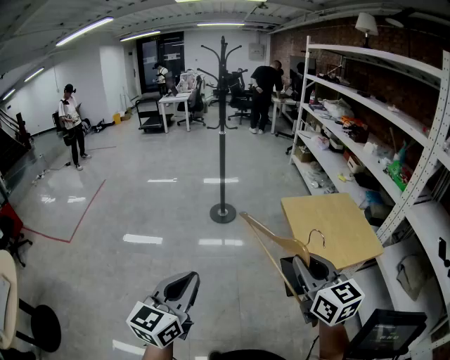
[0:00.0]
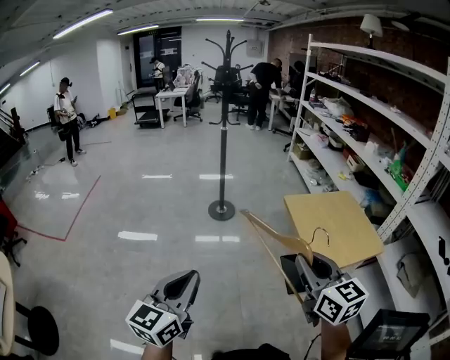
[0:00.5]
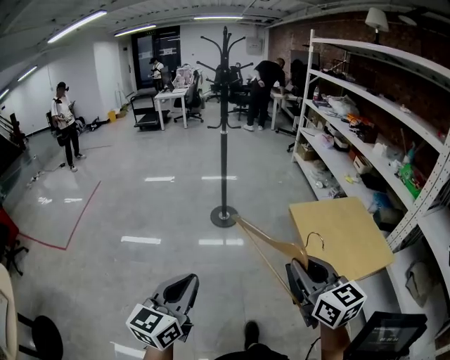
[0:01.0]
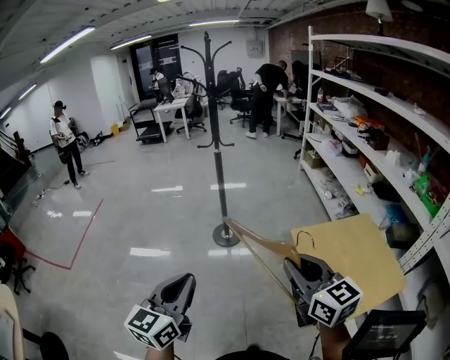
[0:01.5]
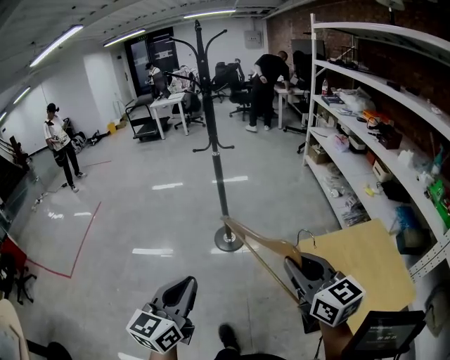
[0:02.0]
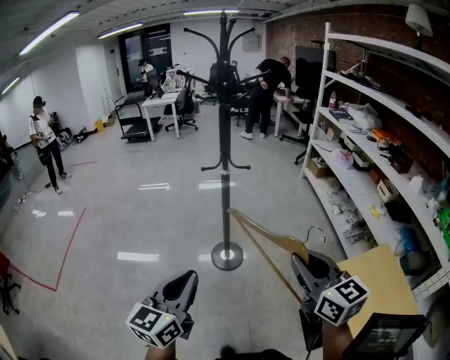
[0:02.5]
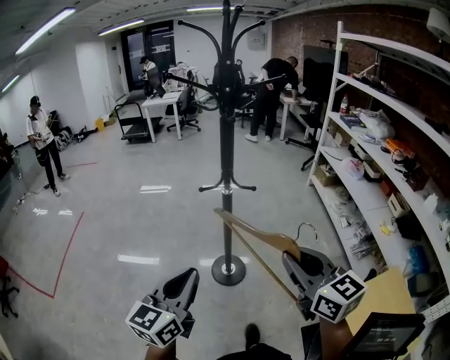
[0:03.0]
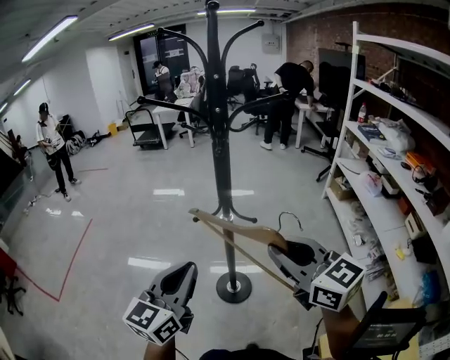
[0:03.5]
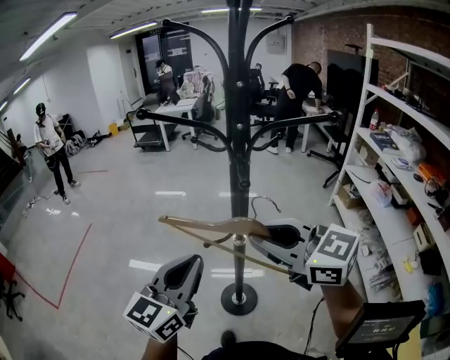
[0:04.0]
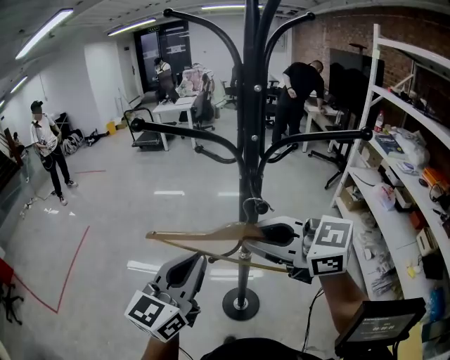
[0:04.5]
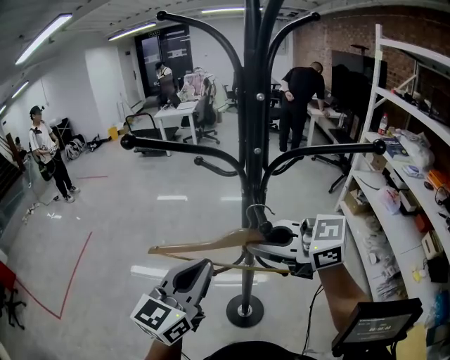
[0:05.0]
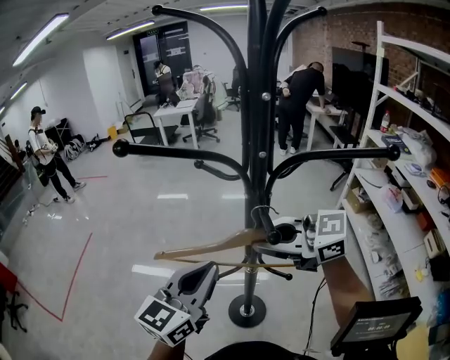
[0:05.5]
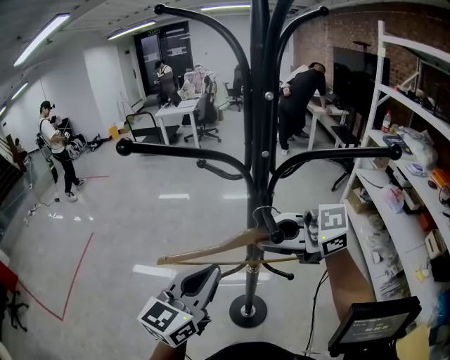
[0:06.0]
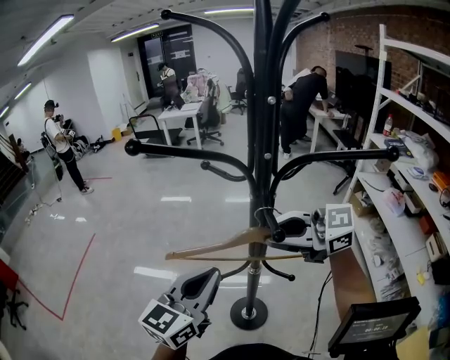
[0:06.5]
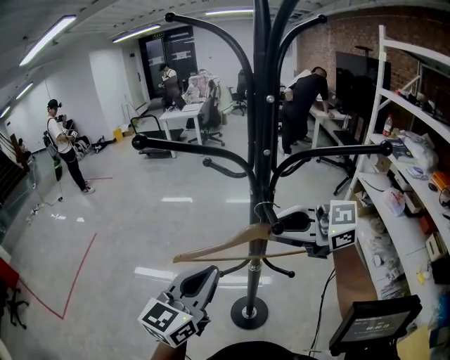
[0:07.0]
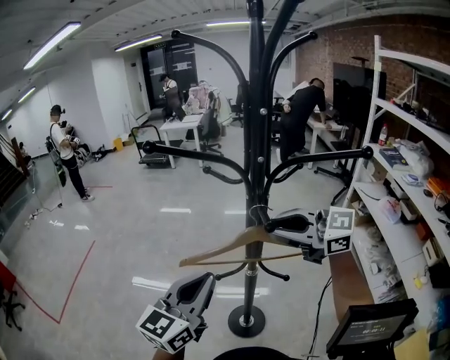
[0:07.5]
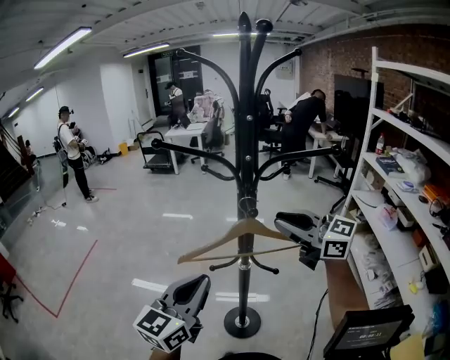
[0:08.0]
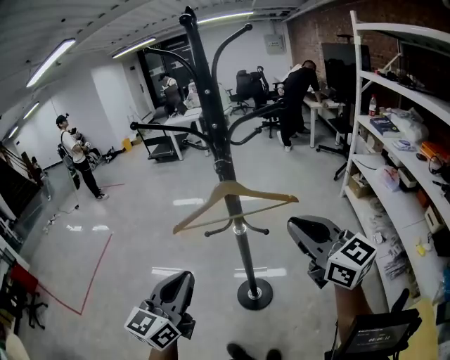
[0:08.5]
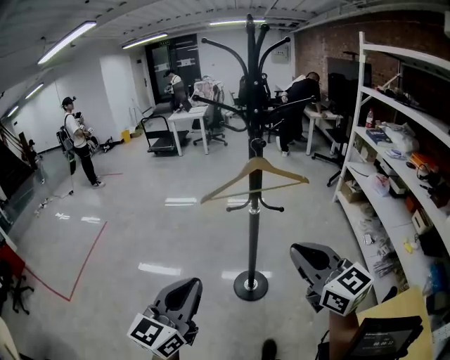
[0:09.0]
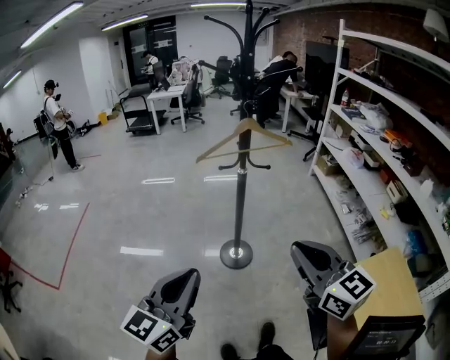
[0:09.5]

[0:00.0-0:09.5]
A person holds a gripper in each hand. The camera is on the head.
0:00.0 to 0:02.0: The two grippers go some 35 cm forward.
0:02.0 to 0:04.0: The two grippers travel together, forward, approximately 50 cm. The right gripper swivels some 40 degrees.
0:04.0 to 0:05.5: The right gripper heads forward and downward, covering about 10 cm, and changes its angle by some 20 degrees; the left gripper shifts approximately 10 cm forward.
0:05.5 to 0:07.5: The right gripper ends up some 5 cm from where it was.
0:07.5 to 0:09.5: The right gripper moves about 50 cm, and turns by roughly 50 degrees, while the left gripper shifts by roughly 40 cm.

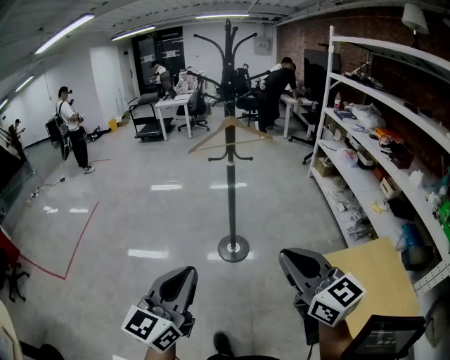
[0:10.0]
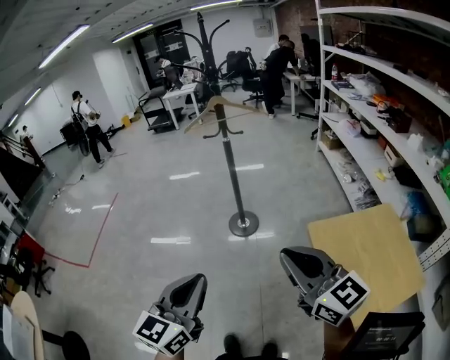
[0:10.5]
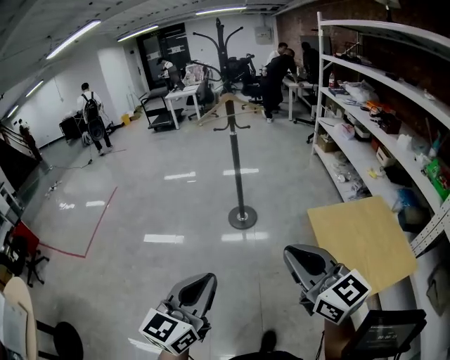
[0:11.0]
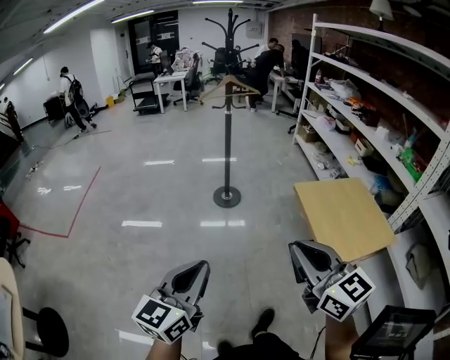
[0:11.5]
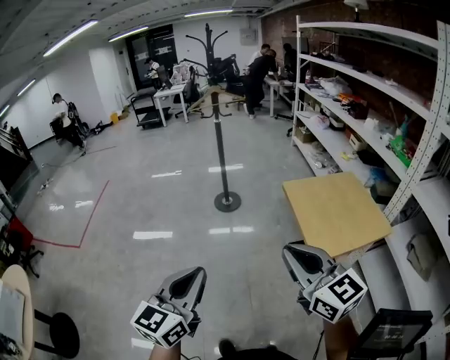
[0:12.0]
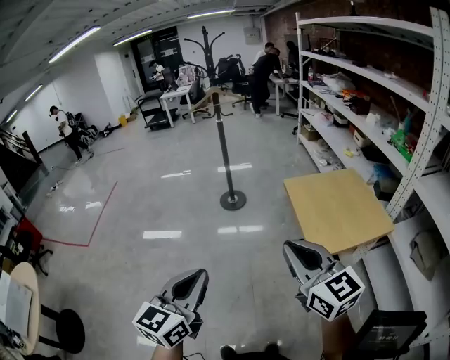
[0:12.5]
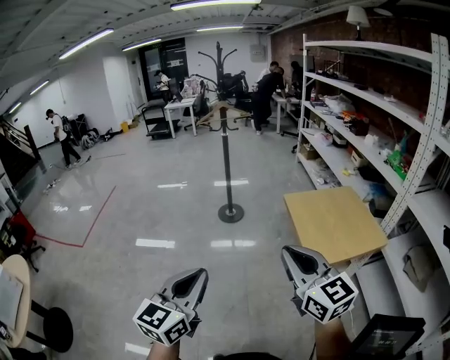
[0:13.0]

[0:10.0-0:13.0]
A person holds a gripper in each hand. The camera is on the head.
0:10.0 to 0:11.5: Both grippers move backward, approximately 35 cm.
0:11.5 to 0:13.0: Both grippers move backward and to the right, some 15 cm.

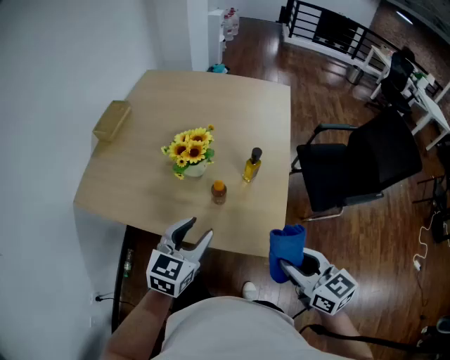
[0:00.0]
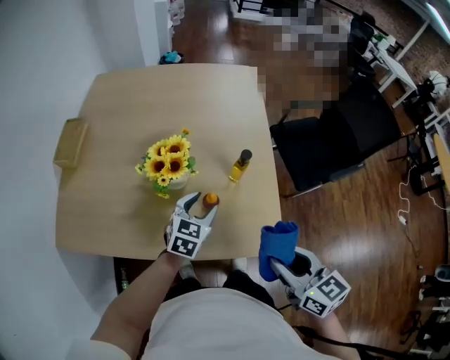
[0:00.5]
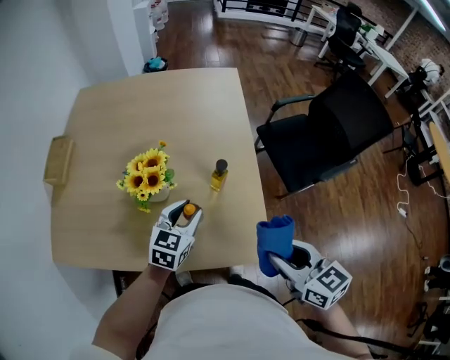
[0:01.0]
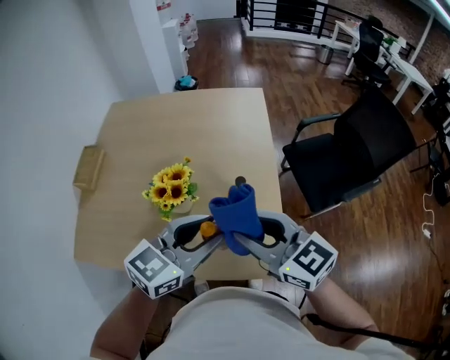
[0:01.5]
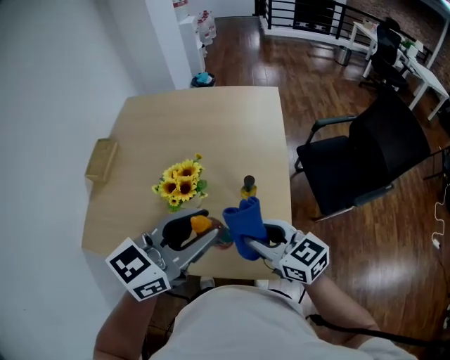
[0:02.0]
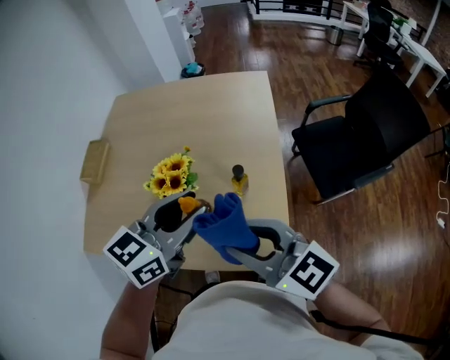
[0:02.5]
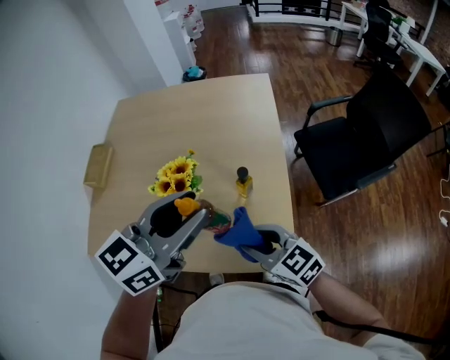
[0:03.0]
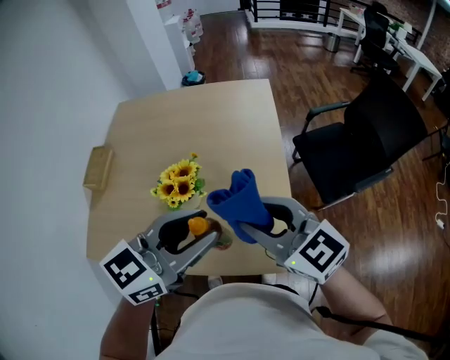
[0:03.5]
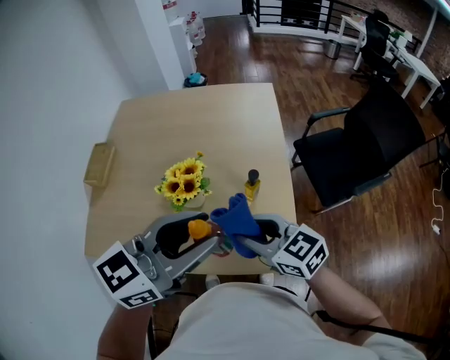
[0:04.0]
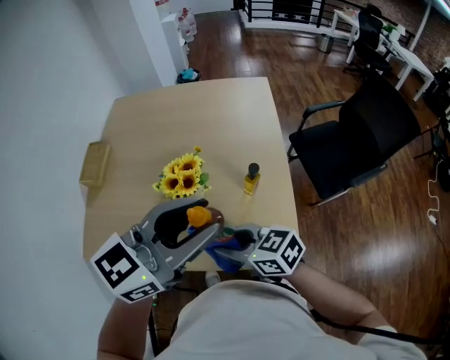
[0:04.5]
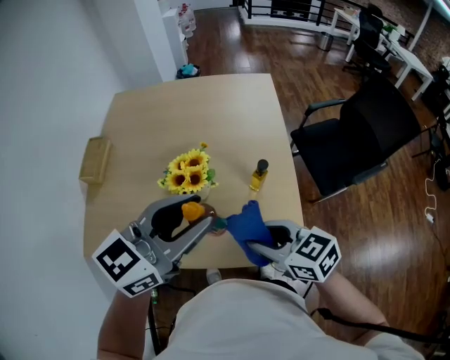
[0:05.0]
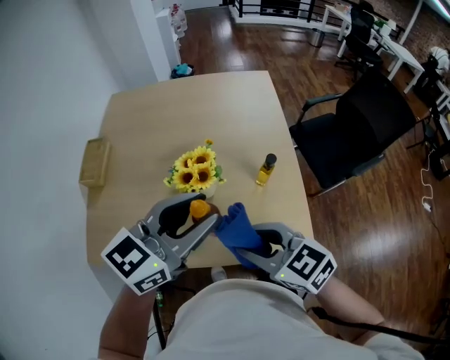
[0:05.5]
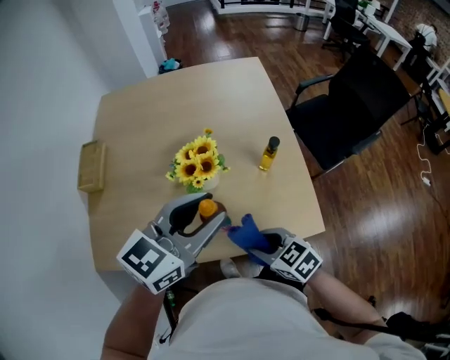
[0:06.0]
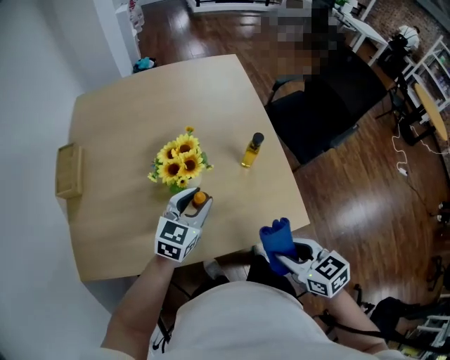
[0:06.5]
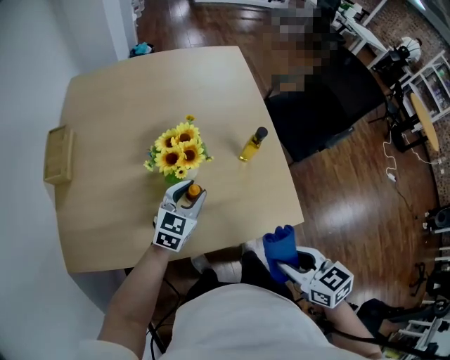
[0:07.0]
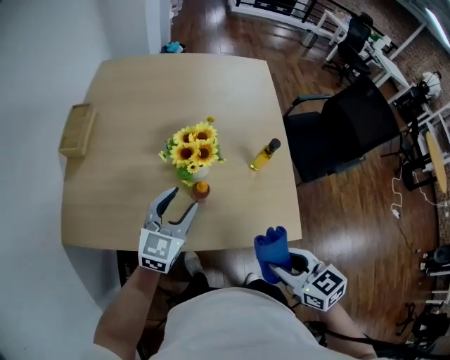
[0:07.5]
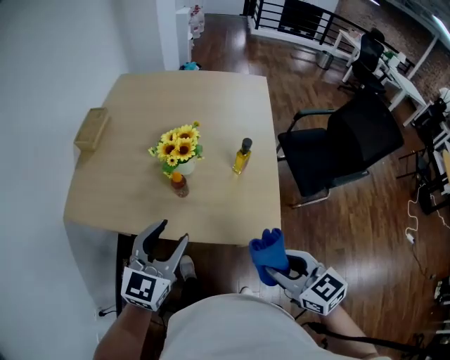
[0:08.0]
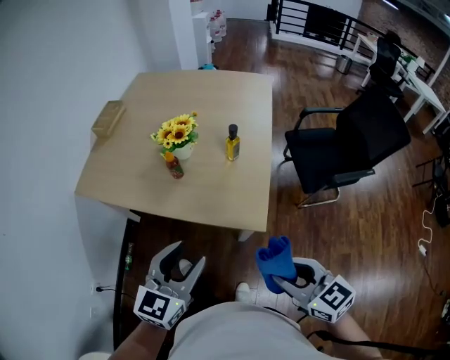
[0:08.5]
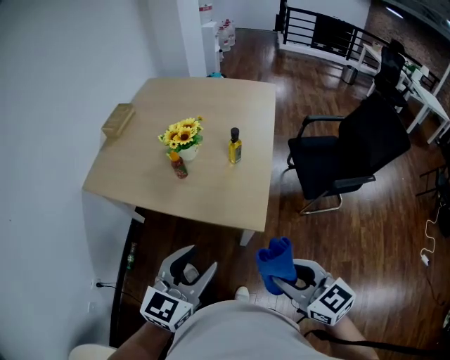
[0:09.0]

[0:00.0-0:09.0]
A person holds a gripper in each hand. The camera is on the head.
0:00.0 to 0:02.0: The left gripper travels upward and forward by some 20 cm, and swivels some 30 degrees; the right gripper goes some 20 cm forward and to the left.
0:02.0 to 0:04.5: The left gripper moves roughly 5 cm. Meanwhile the right gripper swings up and down, approximately 15 cm each way, with 3 reversals.
0:04.5 to 0:07.0: The left gripper travels downward by some 30 cm, and rotates some 20 degrees. The right gripper goes up and down, about 15 cm each way, reversing 2 times, and changes its angle by roughly 40 degrees.
0:07.0 to 0:09.0: The left gripper moves approximately 50 cm, and rotates about 30 degrees. Meanwhile the right gripper shifts by about 30 cm, and swivels approximately 40 degrees.

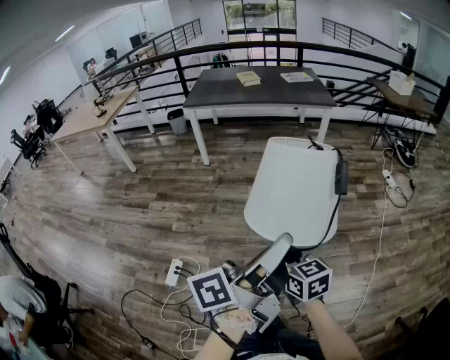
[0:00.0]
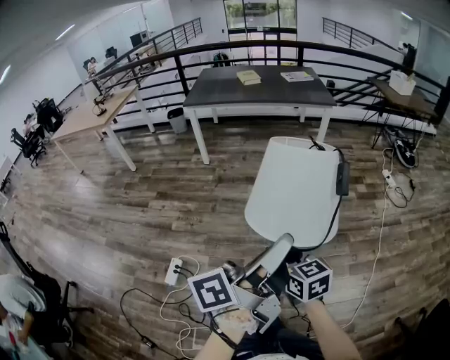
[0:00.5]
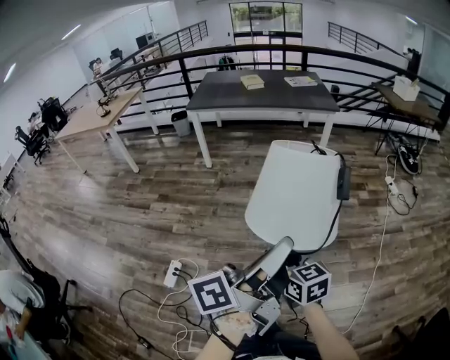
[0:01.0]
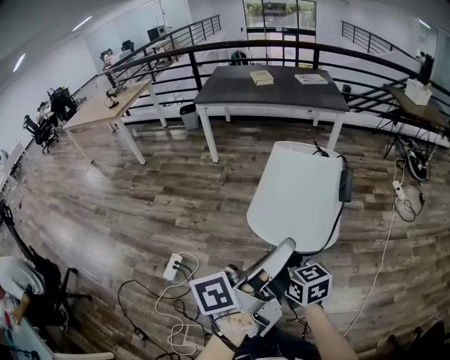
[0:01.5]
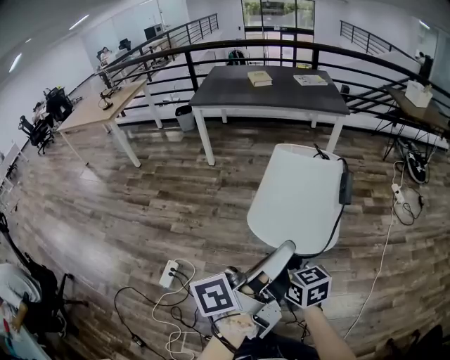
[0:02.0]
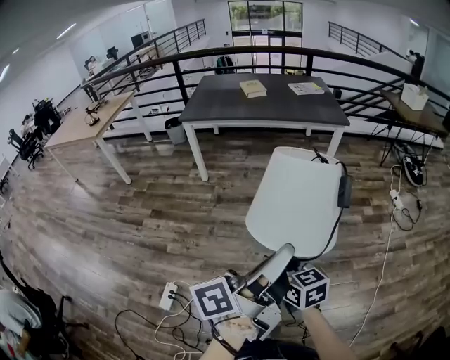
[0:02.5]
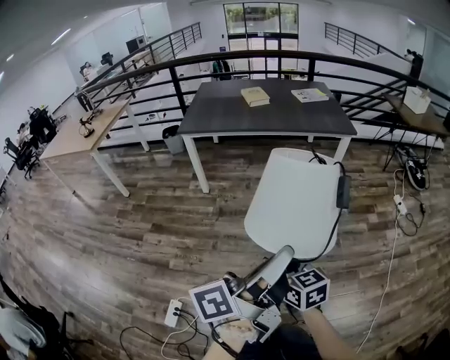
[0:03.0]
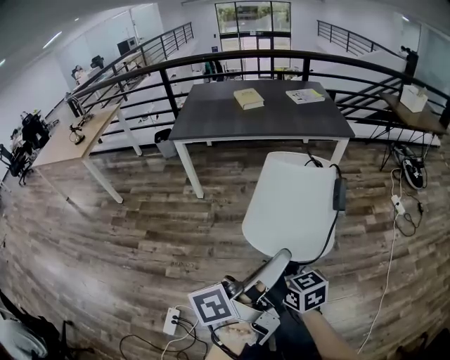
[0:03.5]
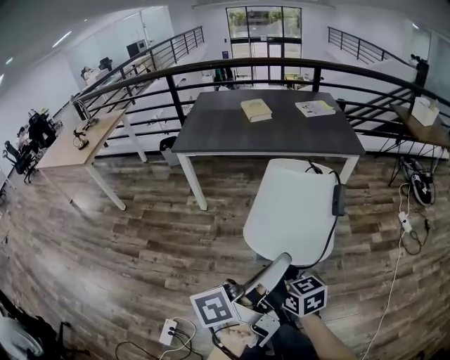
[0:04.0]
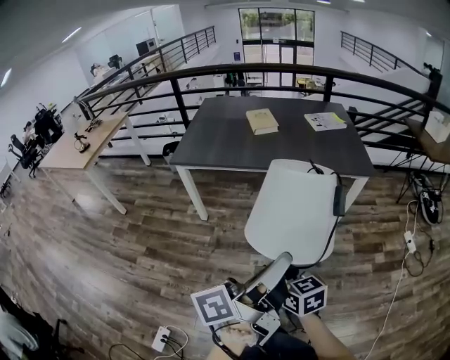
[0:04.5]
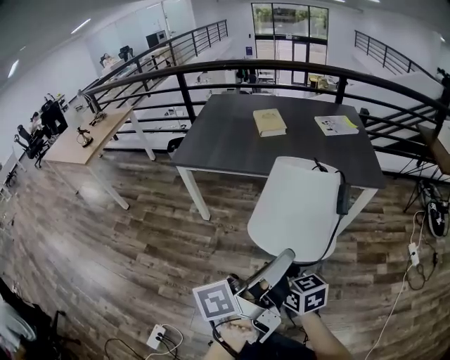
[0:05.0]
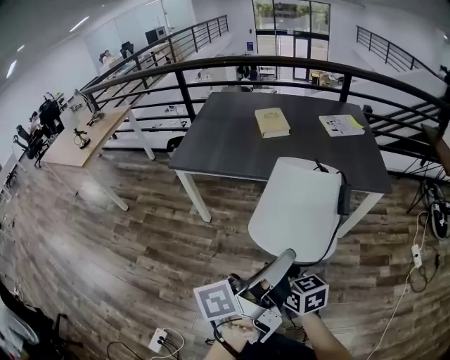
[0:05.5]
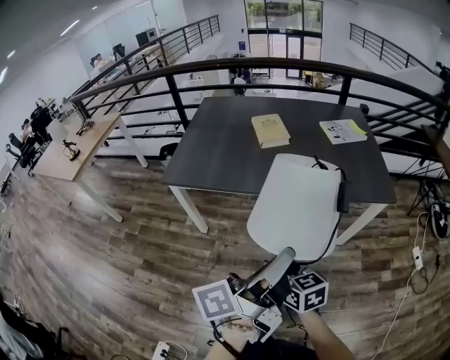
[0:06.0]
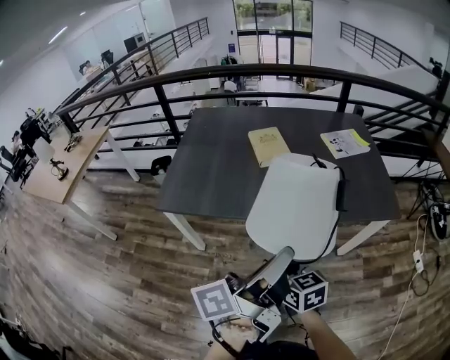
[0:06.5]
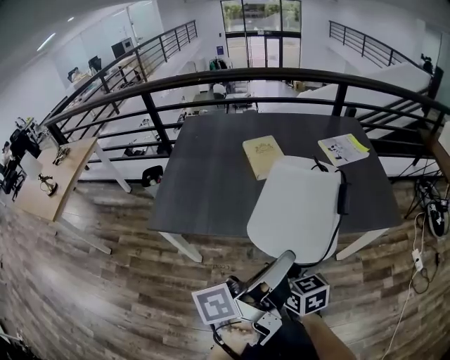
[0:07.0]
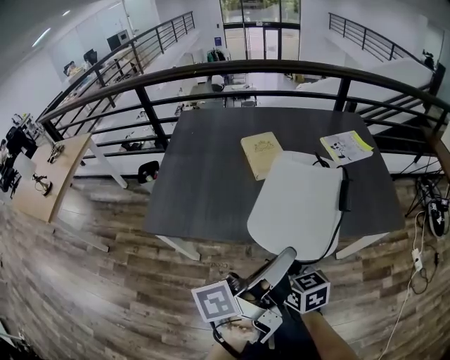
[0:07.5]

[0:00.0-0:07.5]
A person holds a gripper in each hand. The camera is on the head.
0:00.0 to 0:02.0: The right gripper shifts by about 10 cm.
0:02.0 to 0:04.0: The right gripper ends up roughly 35 cm from where it was.
0:04.0 to 0:05.5: The right gripper shifts by about 25 cm.
0:05.5 to 0:07.5: The right gripper changes place by about 35 cm.
